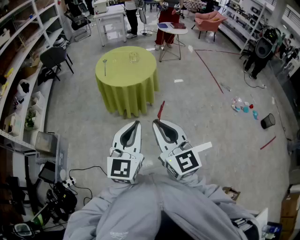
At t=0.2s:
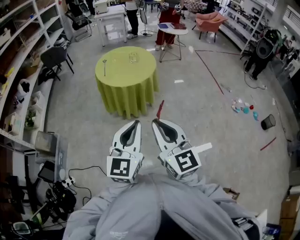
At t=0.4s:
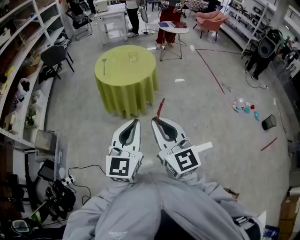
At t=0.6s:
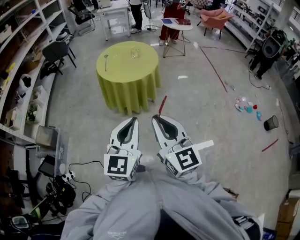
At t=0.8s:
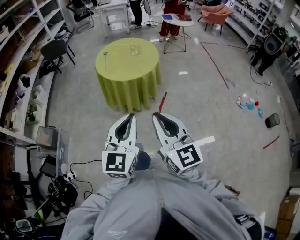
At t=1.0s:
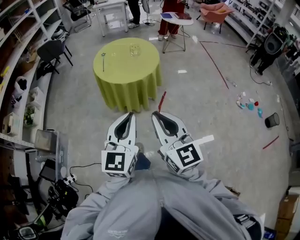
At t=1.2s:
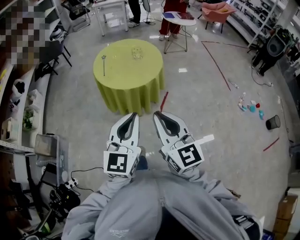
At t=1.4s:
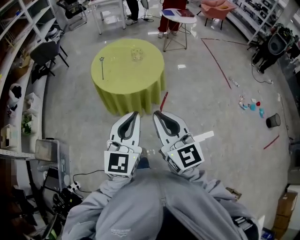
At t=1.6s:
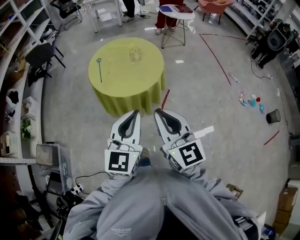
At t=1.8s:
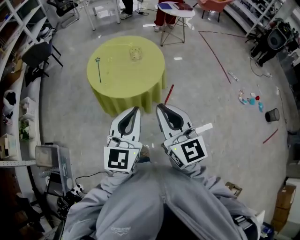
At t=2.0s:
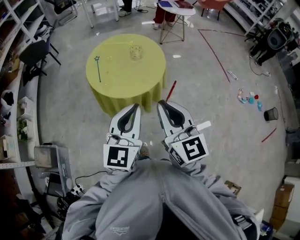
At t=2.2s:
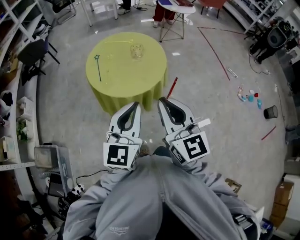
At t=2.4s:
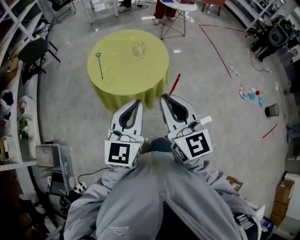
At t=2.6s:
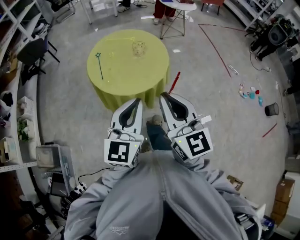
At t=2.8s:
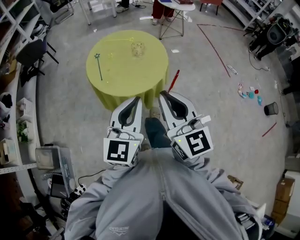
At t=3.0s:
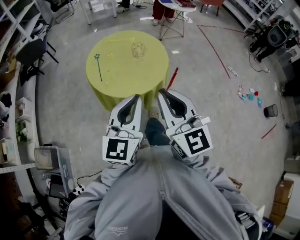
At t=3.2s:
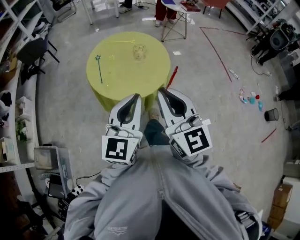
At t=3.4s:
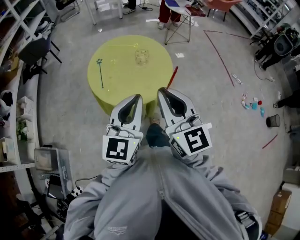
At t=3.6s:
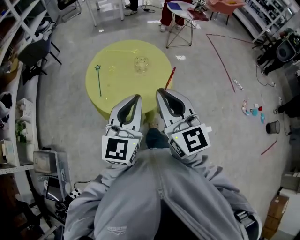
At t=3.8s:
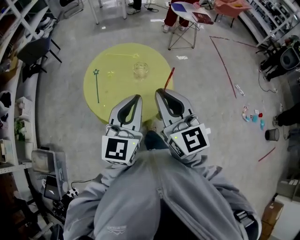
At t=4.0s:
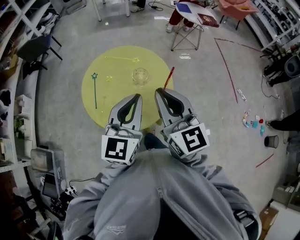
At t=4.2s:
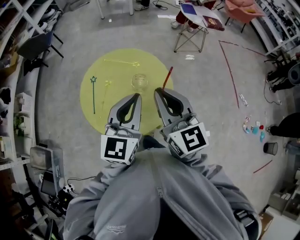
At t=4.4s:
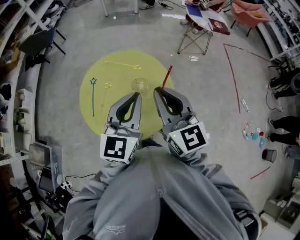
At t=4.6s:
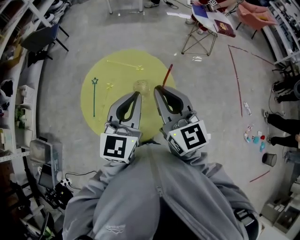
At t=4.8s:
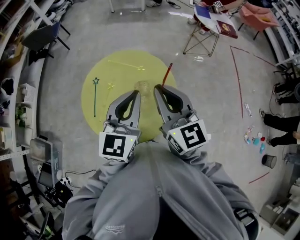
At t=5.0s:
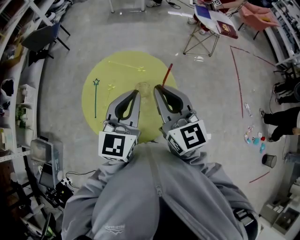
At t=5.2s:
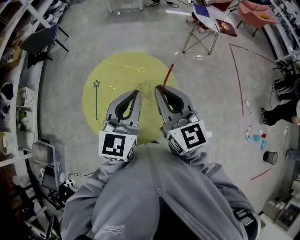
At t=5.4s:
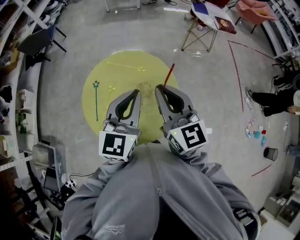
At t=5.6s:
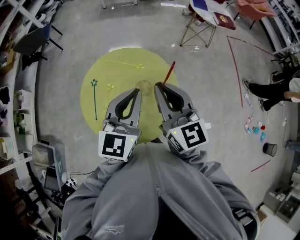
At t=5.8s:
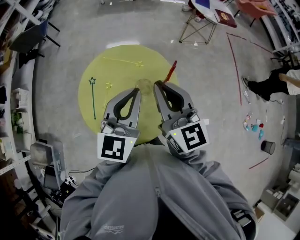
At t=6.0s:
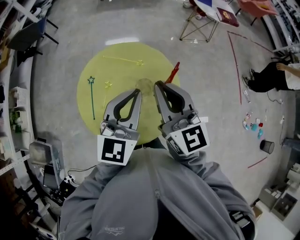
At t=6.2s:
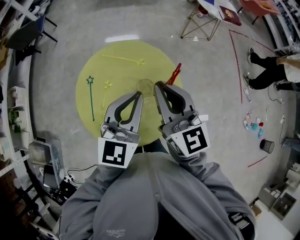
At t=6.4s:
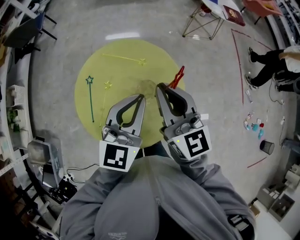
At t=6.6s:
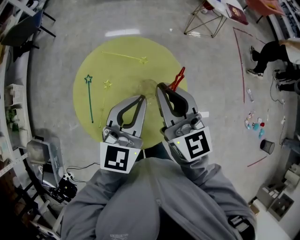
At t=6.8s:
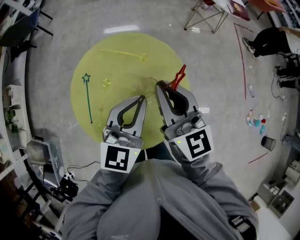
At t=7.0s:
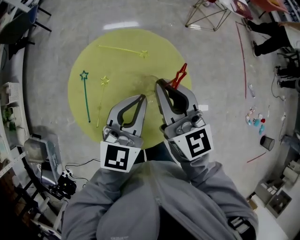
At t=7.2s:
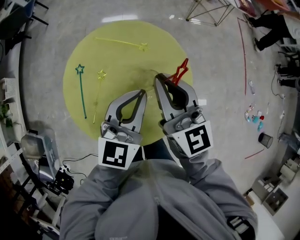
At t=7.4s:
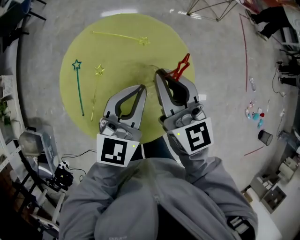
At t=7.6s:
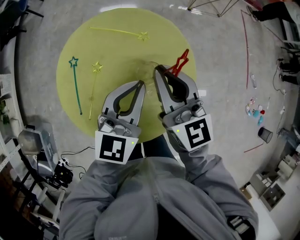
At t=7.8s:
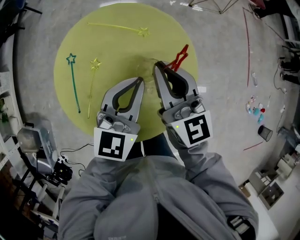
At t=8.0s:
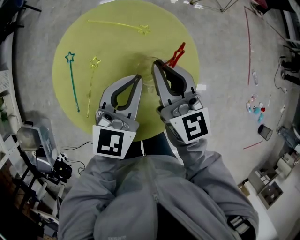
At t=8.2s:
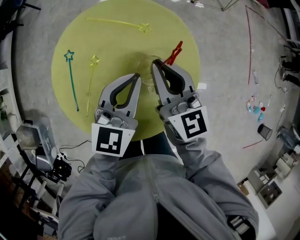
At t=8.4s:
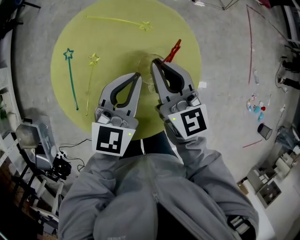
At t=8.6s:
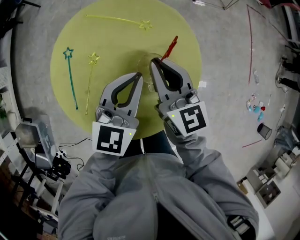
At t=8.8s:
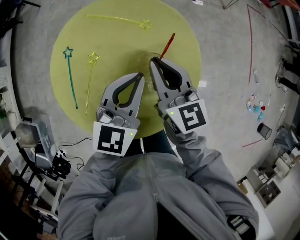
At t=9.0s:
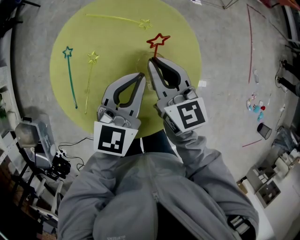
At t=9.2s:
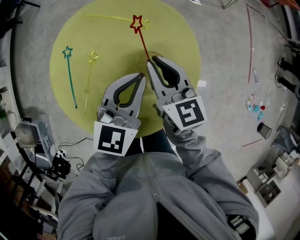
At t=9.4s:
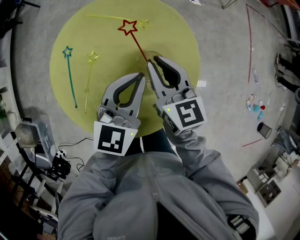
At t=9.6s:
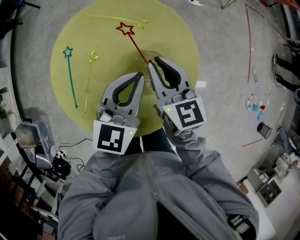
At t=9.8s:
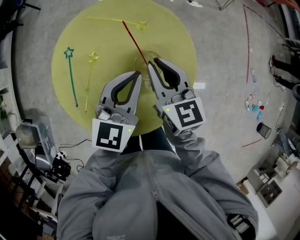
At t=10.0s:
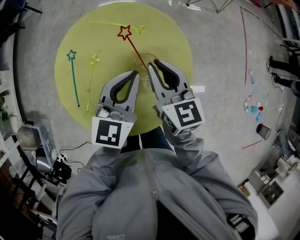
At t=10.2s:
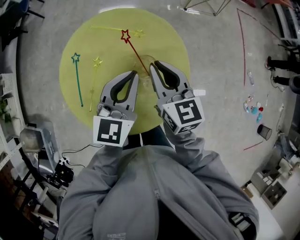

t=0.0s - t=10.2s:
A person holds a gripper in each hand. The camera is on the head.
t=0.0s - t=1.4s: Both grippers move forward, roughly 25 cm.
t=1.4s - t=3.0s: The two grippers go about 15 cm forward.
t=3.0s - t=4.4s: Both grippers travel together forward, about 40 cm.
t=4.4s - t=5.8s: The two grippers go approximately 10 cm forward.
t=5.8s - t=7.2s: The left gripper is displaced downward by approximately 15 cm. The right gripper is displaced downward and forward by about 15 cm.
t=7.2s - t=8.8s: The right gripper heads downward, covering some 15 cm. The left gripper heads downward, covering roughly 10 cm.
t=8.8s - t=10.2s: Both grippers move upward, roughly 5 cm.

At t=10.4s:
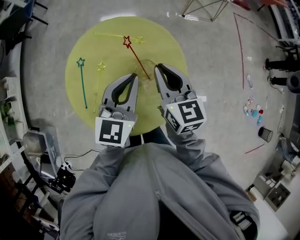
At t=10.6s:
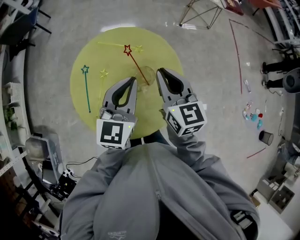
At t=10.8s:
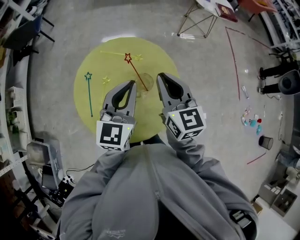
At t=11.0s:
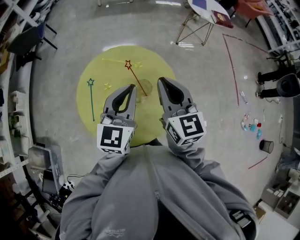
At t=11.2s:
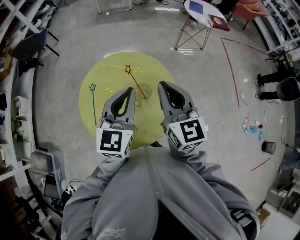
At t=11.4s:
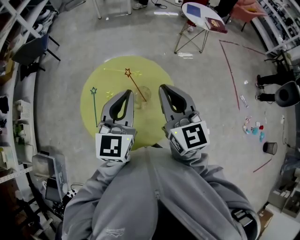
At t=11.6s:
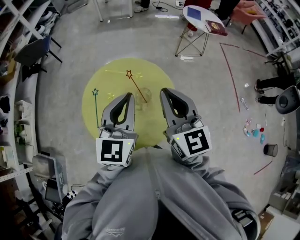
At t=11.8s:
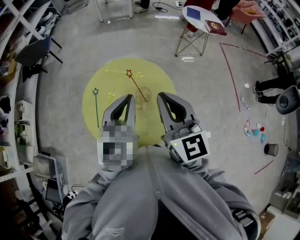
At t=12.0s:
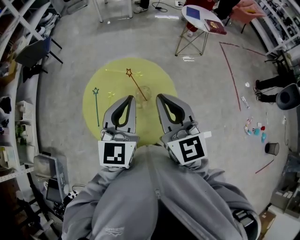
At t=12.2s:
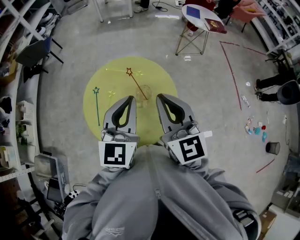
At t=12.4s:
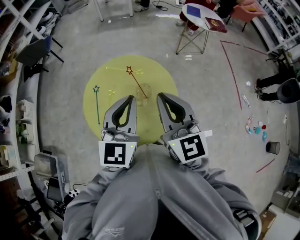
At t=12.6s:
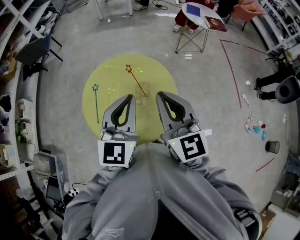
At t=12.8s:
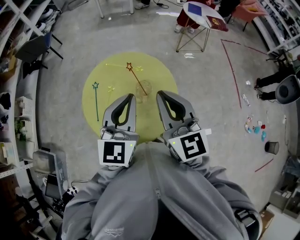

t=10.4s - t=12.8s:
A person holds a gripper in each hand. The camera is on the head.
t=10.4s - t=11.6s: The right gripper goes roughly 25 cm upward and backward; the left gripper moves upward, about 20 cm.
t=11.6s - t=12.8s: There are only small adjustments of the grippers.

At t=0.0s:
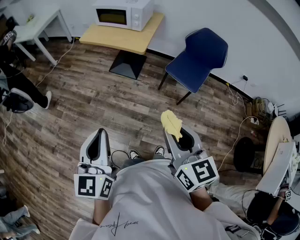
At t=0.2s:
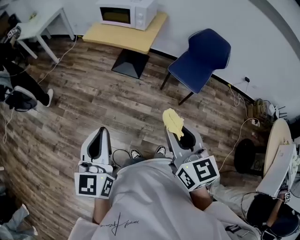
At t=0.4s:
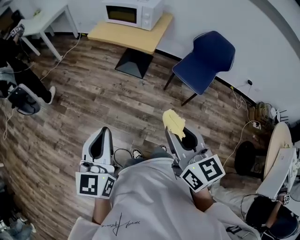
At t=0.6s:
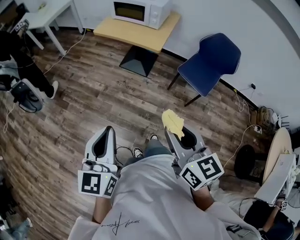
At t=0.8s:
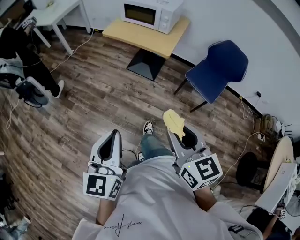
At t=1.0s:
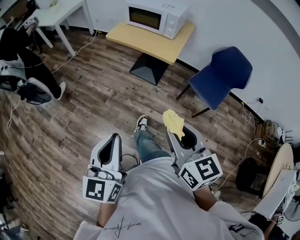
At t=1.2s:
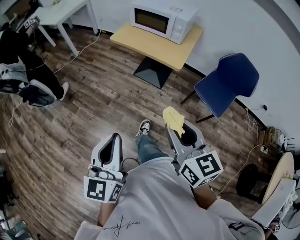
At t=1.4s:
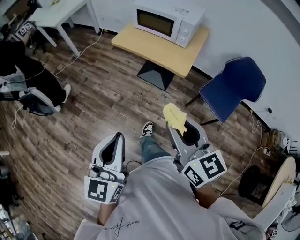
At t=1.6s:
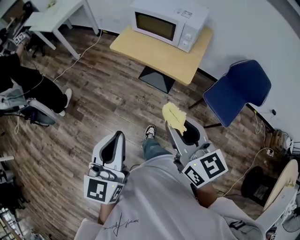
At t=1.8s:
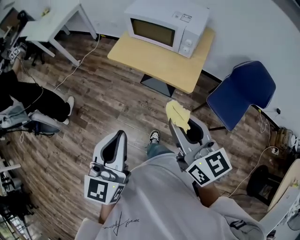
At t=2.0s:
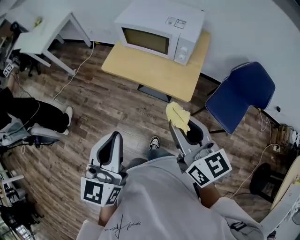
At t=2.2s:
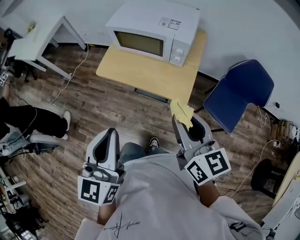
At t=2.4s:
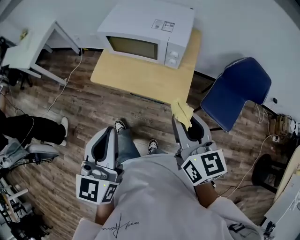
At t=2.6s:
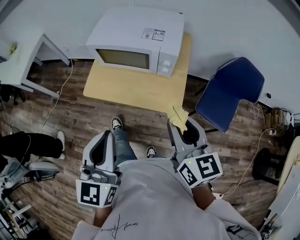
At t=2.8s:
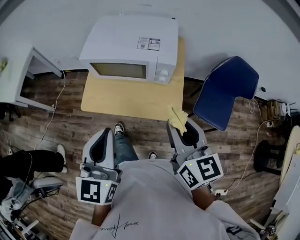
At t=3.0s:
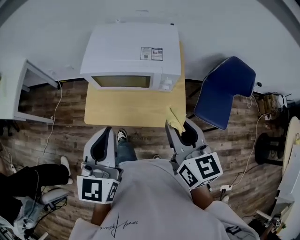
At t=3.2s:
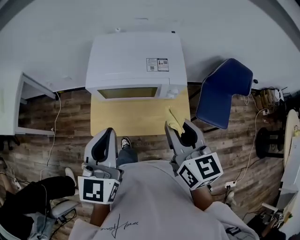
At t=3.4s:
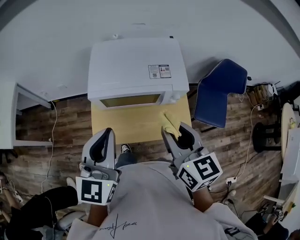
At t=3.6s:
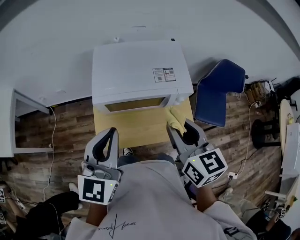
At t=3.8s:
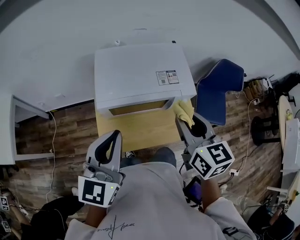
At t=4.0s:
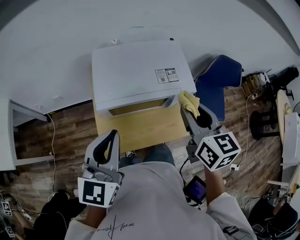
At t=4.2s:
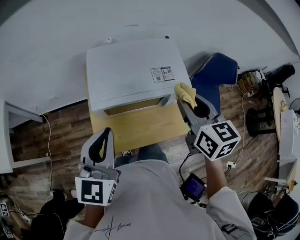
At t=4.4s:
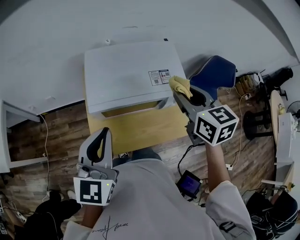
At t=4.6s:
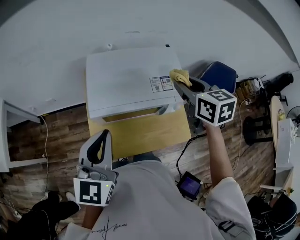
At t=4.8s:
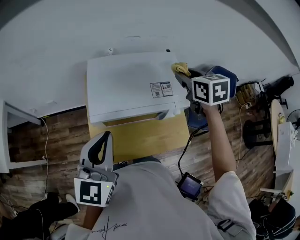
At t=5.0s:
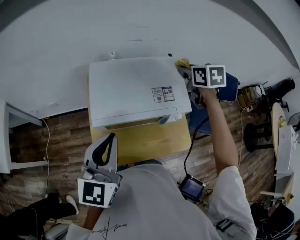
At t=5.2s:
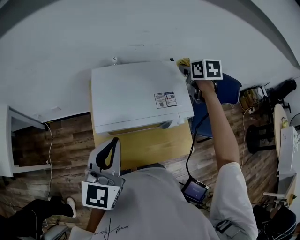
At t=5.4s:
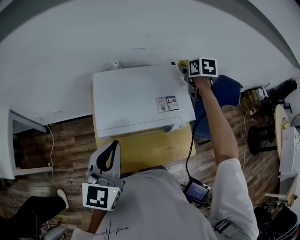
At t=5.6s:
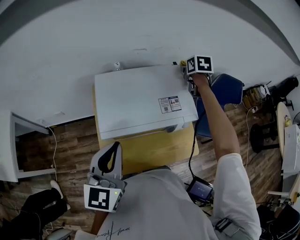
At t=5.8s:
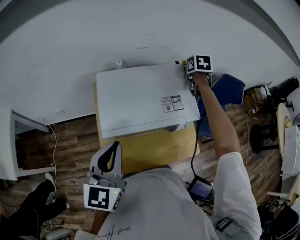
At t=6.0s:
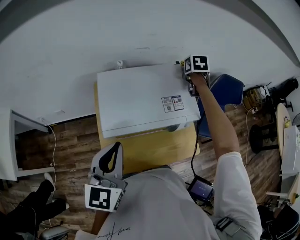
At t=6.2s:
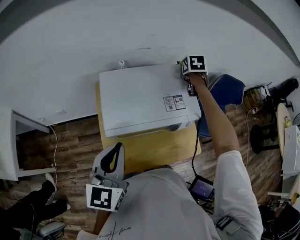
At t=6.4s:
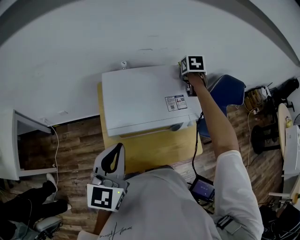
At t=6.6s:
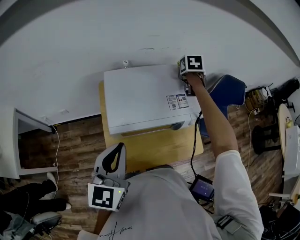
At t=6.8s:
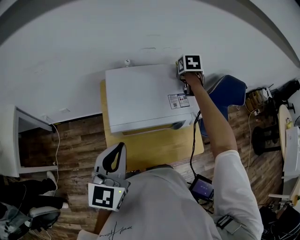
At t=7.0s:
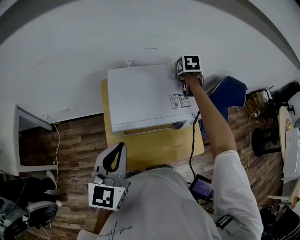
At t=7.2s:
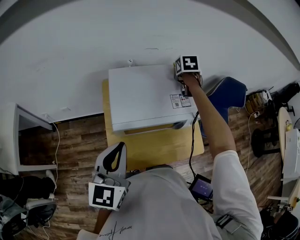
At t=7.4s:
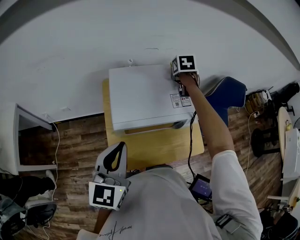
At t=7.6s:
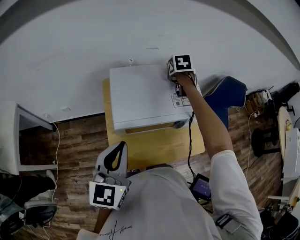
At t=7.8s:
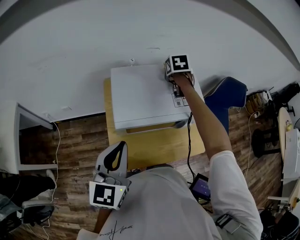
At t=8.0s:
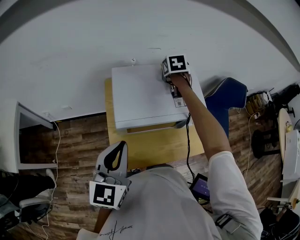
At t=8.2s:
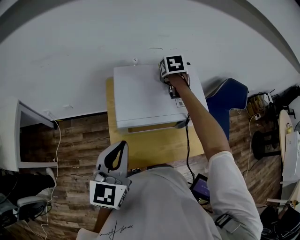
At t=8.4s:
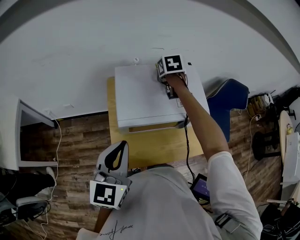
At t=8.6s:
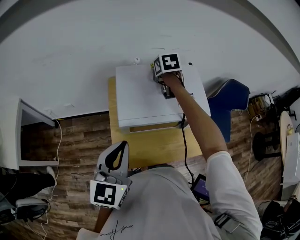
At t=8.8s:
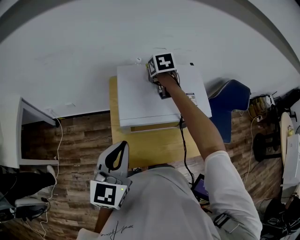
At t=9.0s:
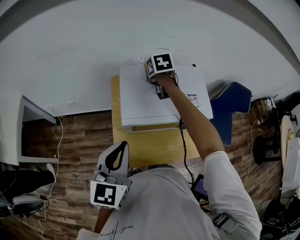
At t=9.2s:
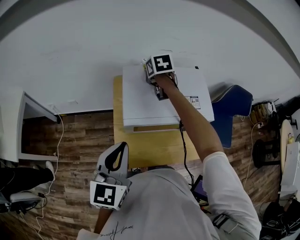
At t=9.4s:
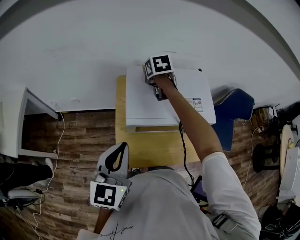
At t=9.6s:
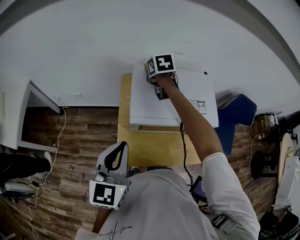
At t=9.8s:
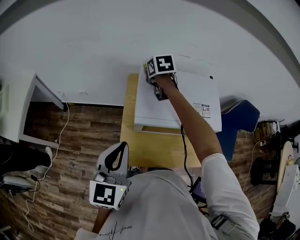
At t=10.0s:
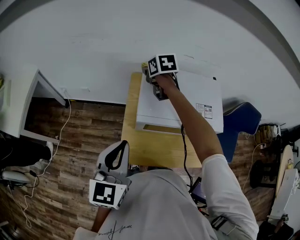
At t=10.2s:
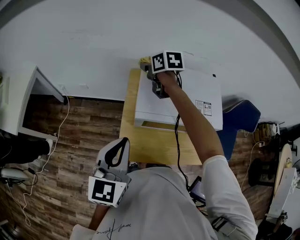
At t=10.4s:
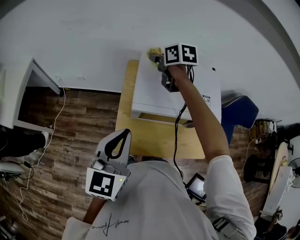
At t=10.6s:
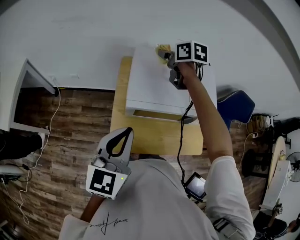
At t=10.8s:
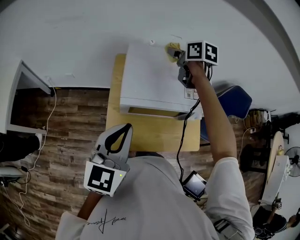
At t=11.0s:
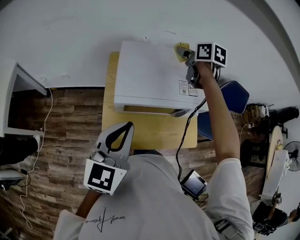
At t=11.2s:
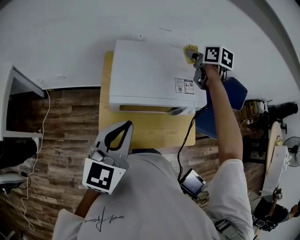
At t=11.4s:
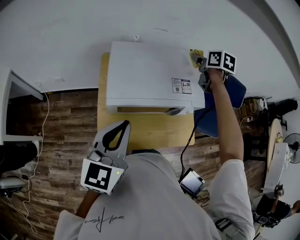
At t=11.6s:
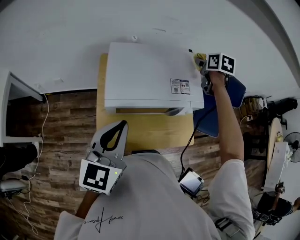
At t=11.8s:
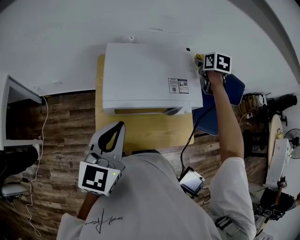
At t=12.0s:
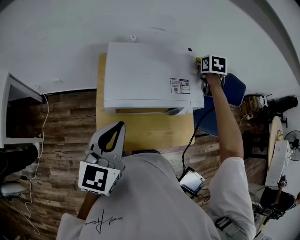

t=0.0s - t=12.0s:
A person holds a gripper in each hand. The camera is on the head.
t=0.0s - t=1.6s: The grippers both shift forward by roughly 35 cm.
t=1.6s - t=3.0s: The right gripper changes place by roughly 35 cm, and turns by some 30 degrees; the left gripper ends up about 40 cm from where it was, and turns by about 20 degrees.
t=3.0s - t=4.4s: The left gripper goes roughly 20 cm to the left and forward. Meanwhile the right gripper moves forward and to the left, roughly 20 cm.
t=4.4s - t=6.0s: The left gripper shifts by about 5 cm. The right gripper heads forward, covering approximately 30 cm, and turns by roughly 30 degrees.
t=6.0s - t=7.6s: The right gripper heads to the left, covering some 10 cm.
t=7.6s - t=9.0s: The right gripper moves to the left, some 15 cm.
t=9.0s - t=10.4s: The right gripper shifts approximately 10 cm to the left, and rotates about 20 degrees.
t=10.4s - t=12.0s: The right gripper changes place by some 40 cm, and rotates approximately 40 degrees. Meanwhile the left gripper moves roughly 10 cm.
